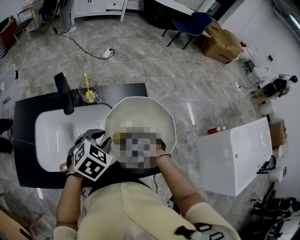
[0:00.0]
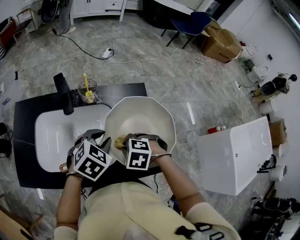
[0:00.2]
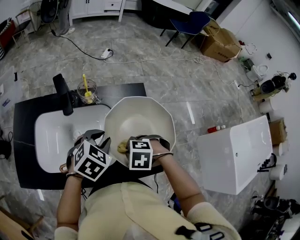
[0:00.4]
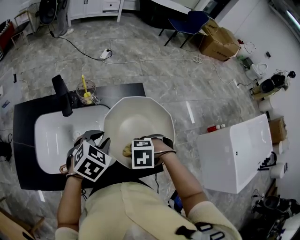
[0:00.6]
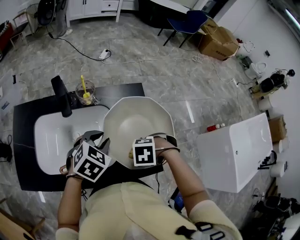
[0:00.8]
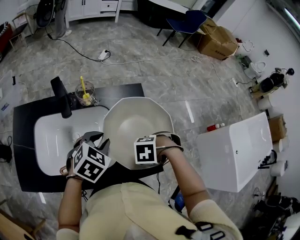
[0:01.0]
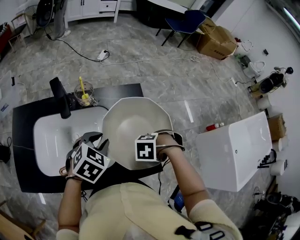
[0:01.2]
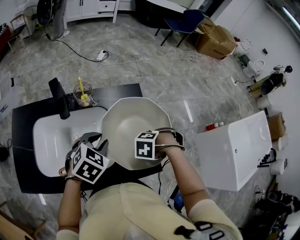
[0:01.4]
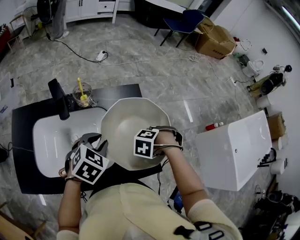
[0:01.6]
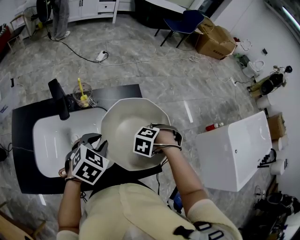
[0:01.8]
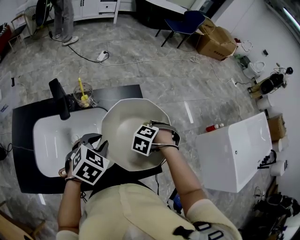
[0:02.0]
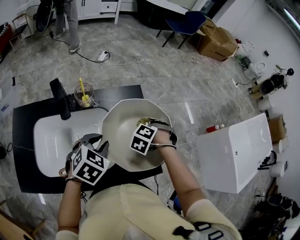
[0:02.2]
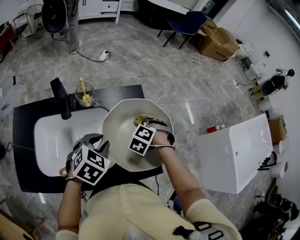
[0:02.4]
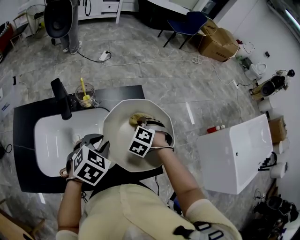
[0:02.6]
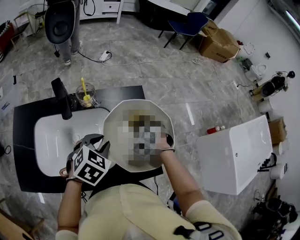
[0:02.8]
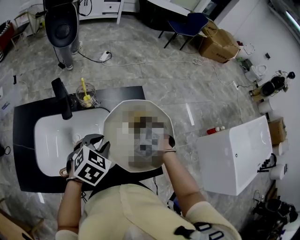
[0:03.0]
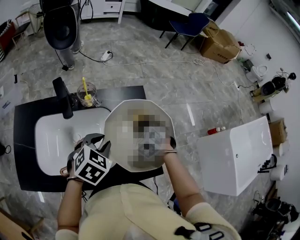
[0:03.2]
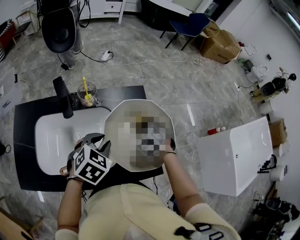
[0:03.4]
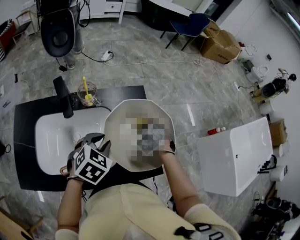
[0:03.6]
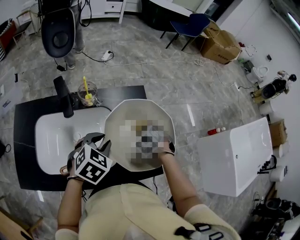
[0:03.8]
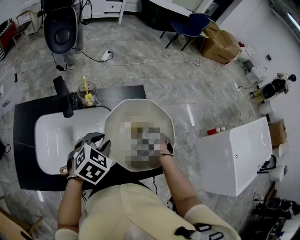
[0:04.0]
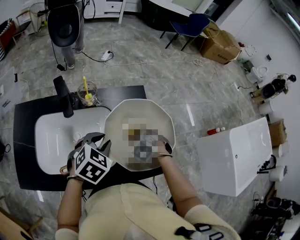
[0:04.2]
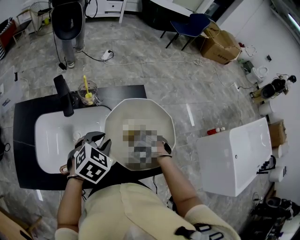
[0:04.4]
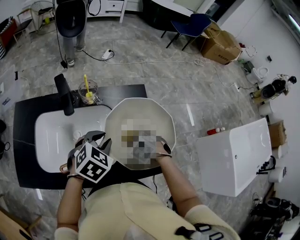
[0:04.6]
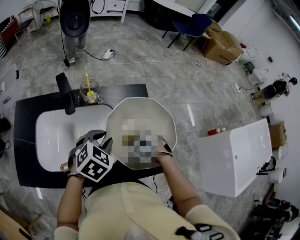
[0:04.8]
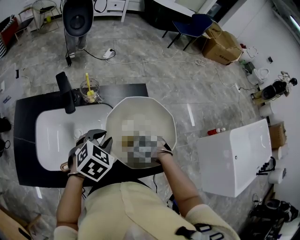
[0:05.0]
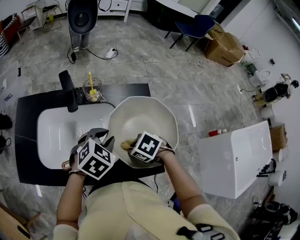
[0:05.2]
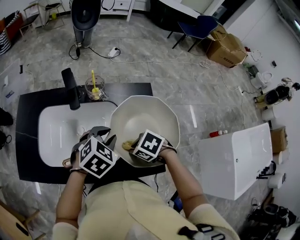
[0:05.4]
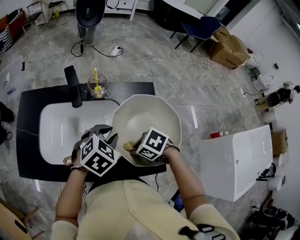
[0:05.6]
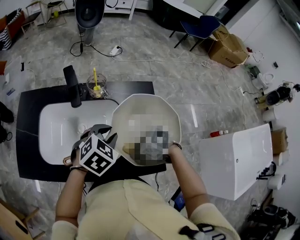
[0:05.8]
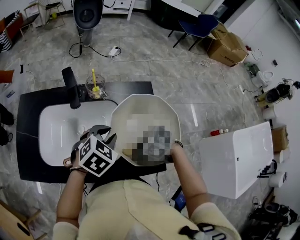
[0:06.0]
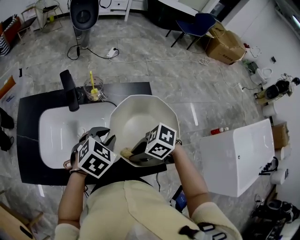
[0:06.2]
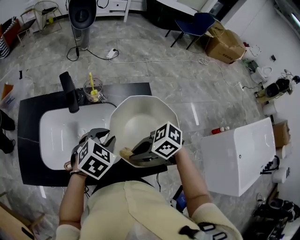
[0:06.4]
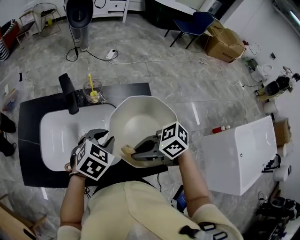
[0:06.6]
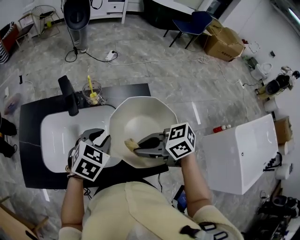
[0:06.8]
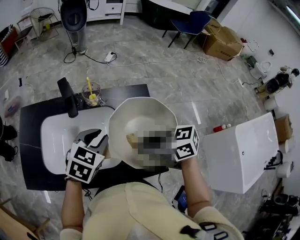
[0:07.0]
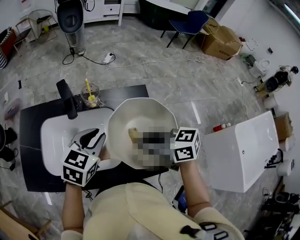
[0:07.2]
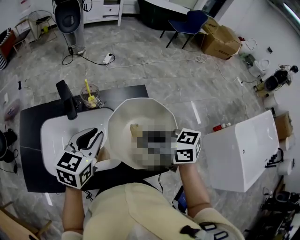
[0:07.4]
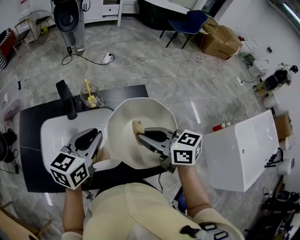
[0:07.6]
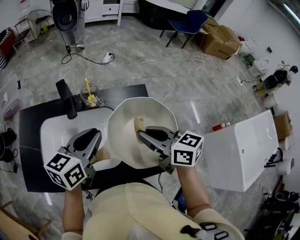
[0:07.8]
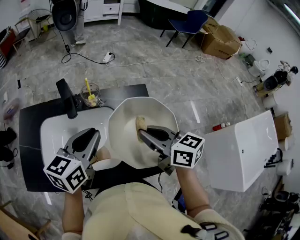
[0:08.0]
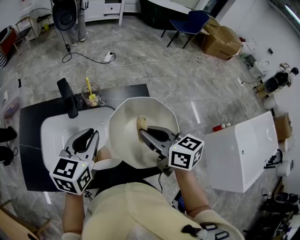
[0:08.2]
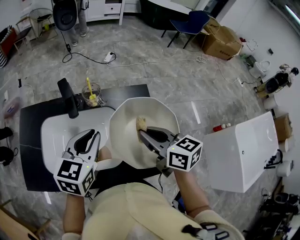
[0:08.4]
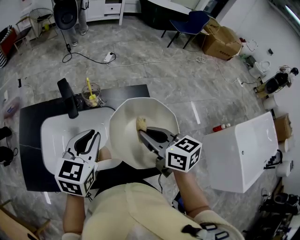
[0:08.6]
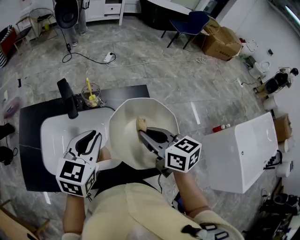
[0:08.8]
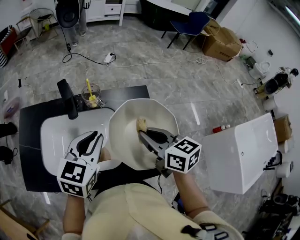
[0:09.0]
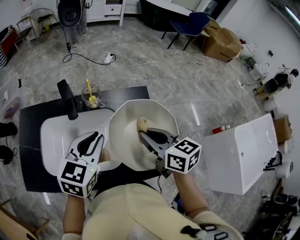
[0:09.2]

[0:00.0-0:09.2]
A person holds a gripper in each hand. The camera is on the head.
0:00.0 to 0:01.6: The right gripper shifts by approximately 15 cm, and changes its angle by some 30 degrees.
0:01.6 to 0:03.0: The right gripper ends up some 10 cm from where it was, and swivels approximately 40 degrees.
0:03.0 to 0:04.6: The right gripper moves backward, approximately 10 cm, and rotates approximately 30 degrees.
0:04.6 to 0:06.2: The right gripper shifts by some 10 cm, and points its fingers about 30 degrees further upward.
0:06.2 to 0:07.6: Both grippers move upward, about 10 cm. The left gripper points its fingers about 30 degrees further upward, while the right gripper changes its angle by about 50 degrees.
0:07.6 to 0:09.2: The grippers move only a little.

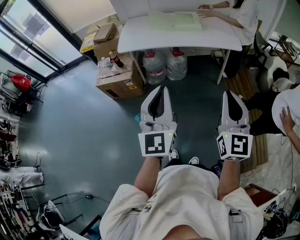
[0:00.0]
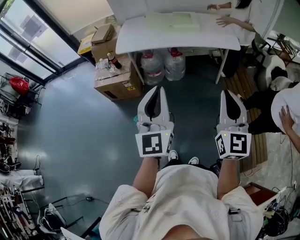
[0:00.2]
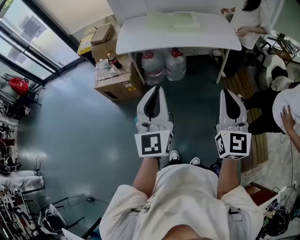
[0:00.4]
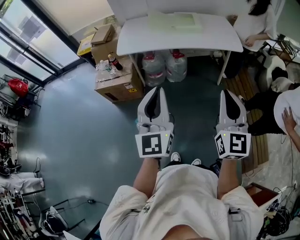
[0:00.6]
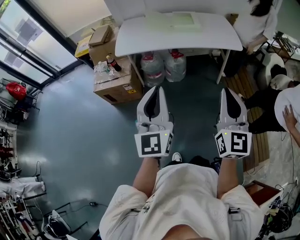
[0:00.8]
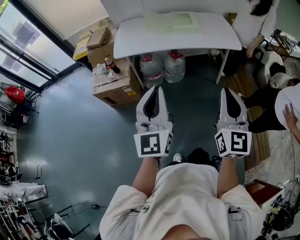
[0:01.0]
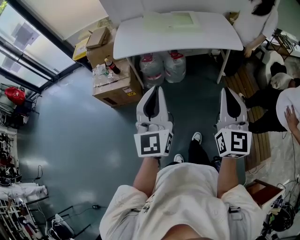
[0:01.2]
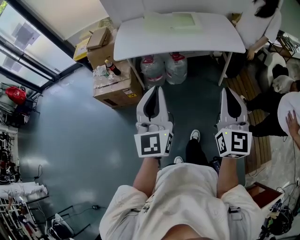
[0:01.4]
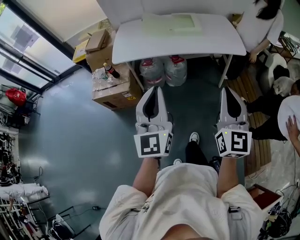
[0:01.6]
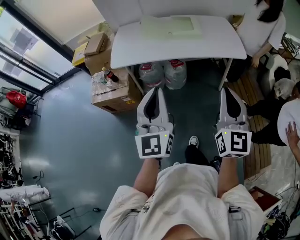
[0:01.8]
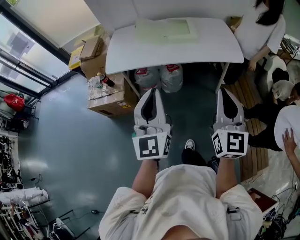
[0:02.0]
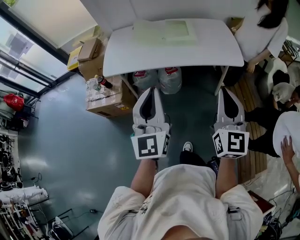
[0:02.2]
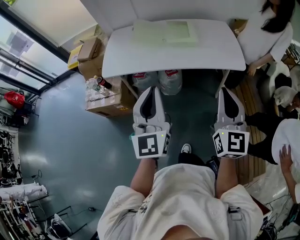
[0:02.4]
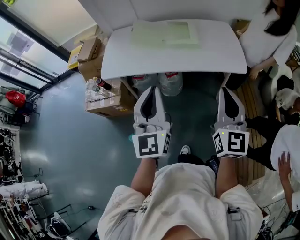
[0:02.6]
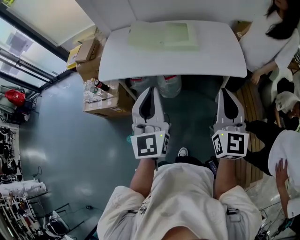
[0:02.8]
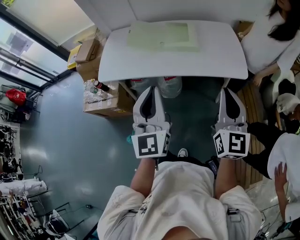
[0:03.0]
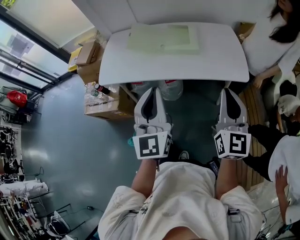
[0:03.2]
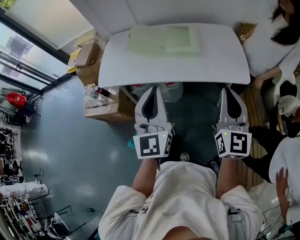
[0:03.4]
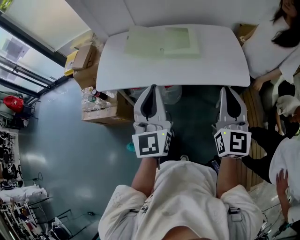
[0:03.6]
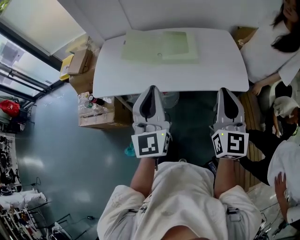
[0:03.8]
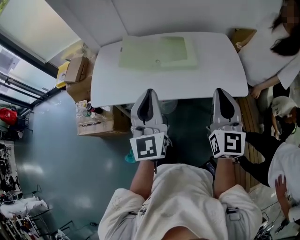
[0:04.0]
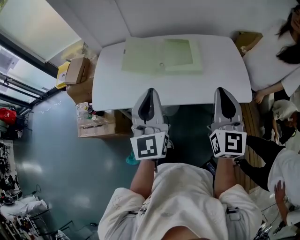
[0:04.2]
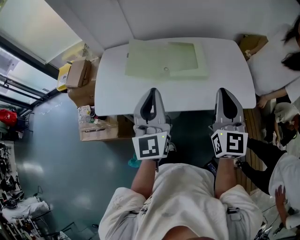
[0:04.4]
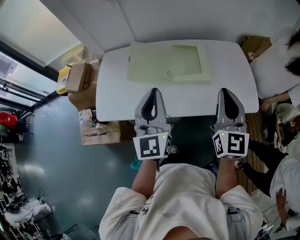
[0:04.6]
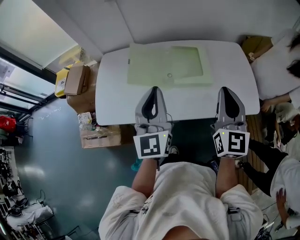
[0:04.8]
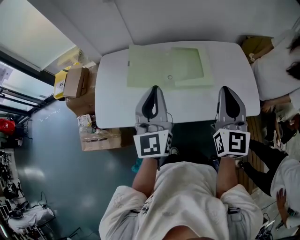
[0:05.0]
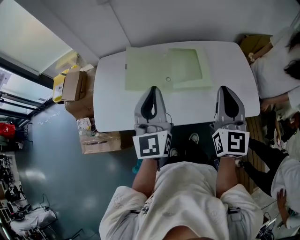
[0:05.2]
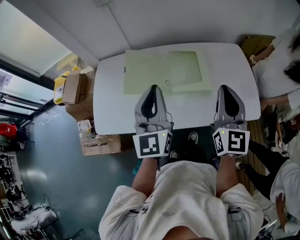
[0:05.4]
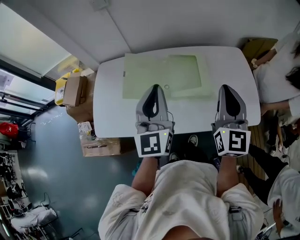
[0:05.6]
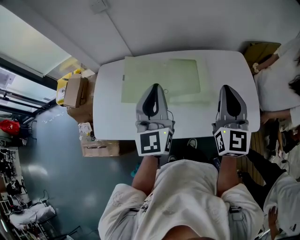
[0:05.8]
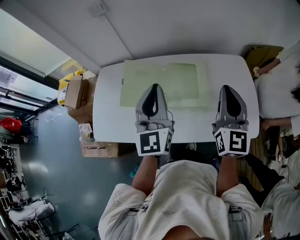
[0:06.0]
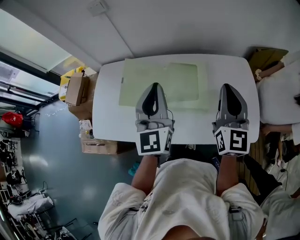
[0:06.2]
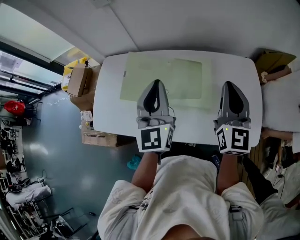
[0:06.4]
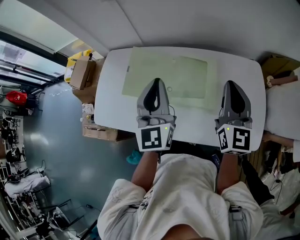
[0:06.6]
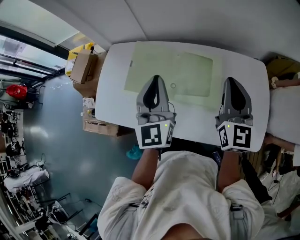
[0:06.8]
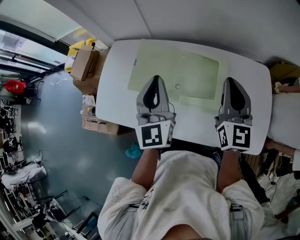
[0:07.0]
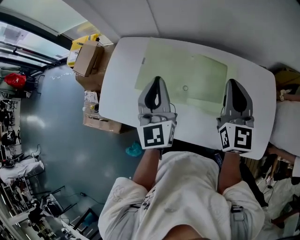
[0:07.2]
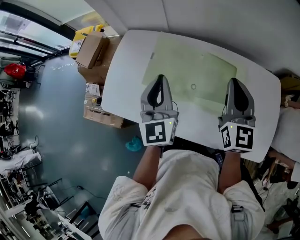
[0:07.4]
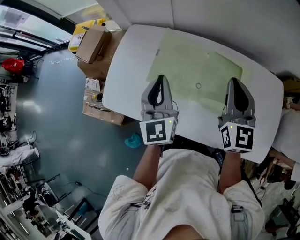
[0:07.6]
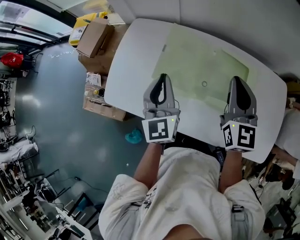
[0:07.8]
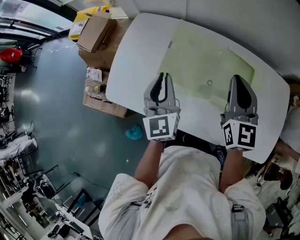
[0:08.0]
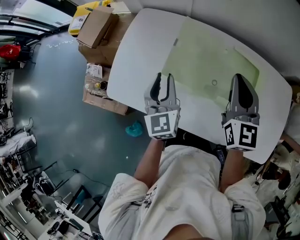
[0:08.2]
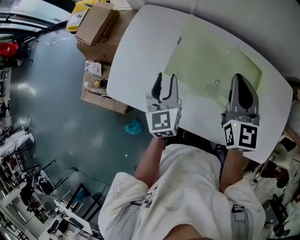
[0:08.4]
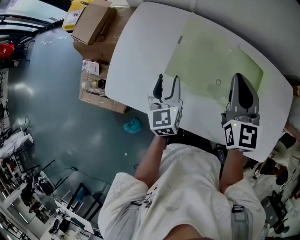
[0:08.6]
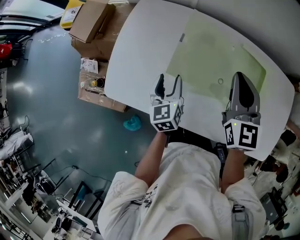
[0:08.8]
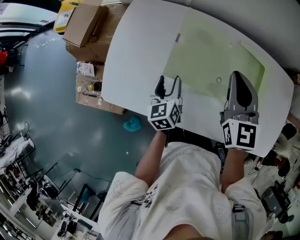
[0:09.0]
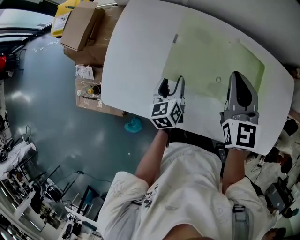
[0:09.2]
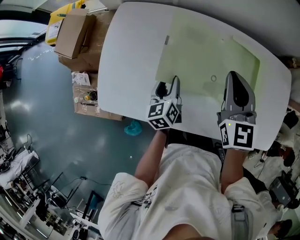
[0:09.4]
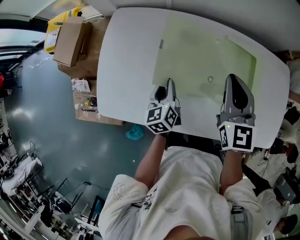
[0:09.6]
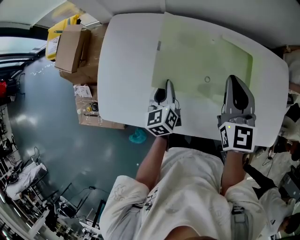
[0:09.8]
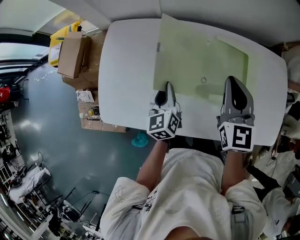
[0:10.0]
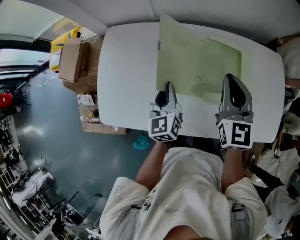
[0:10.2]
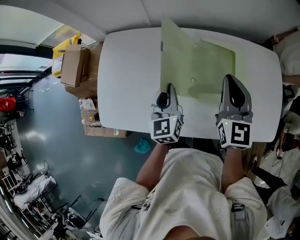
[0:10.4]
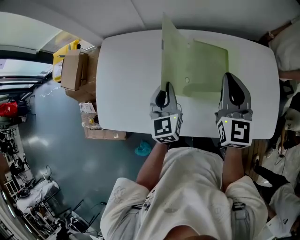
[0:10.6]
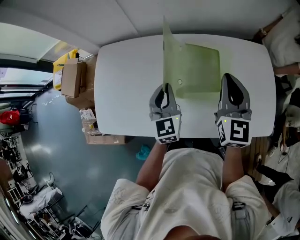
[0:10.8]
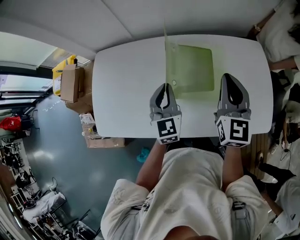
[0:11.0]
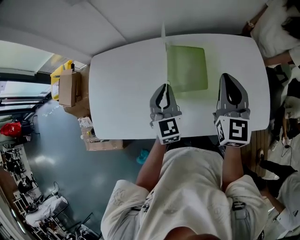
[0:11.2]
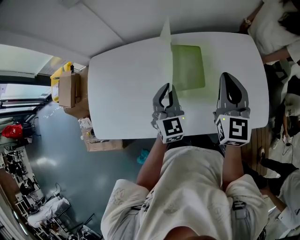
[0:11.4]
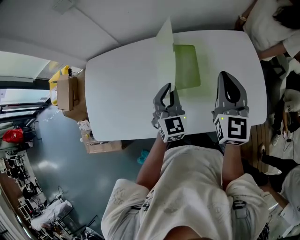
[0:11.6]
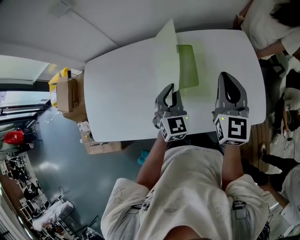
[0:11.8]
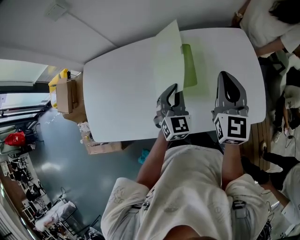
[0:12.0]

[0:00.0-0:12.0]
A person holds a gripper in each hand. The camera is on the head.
0:00.0 to 0:01.6: The two grippers go some 15 cm forward.
0:01.6 to 0:03.0: Both grippers travel together forward and to the right, about 30 cm.
0:03.0 to 0:04.4: Both grippers move forward, about 25 cm.
0:04.4 to 0:06.0: Both grippers move forward, approximately 20 cm.
0:06.0 to 0:07.6: The right gripper heads to the left and forward, covering about 20 cm, and rotates roughly 20 degrees; the left gripper travels to the left, downward and forward by approximately 20 cm, and rotates approximately 20 degrees.
0:07.6 to 0:09.0: The left gripper goes approximately 25 cm downward, swivels approximately 40 degrees, and opens its fingers; the right gripper travels to the left, downward and forward by roughly 15 cm.
0:09.0 to 0:10.4: The left gripper is displaced to the right and upward by some 15 cm, turns by about 20 degrees, and closes, while the right gripper shifts about 15 cm to the right.
0:10.4 to 0:12.0: Both grippers move to the right, roughly 20 cm. The left gripper twists roughly 40 degrees clockwise, seen from behind.

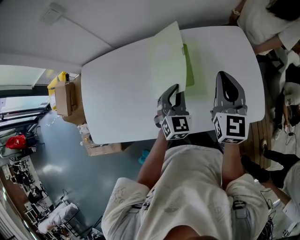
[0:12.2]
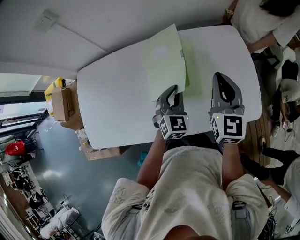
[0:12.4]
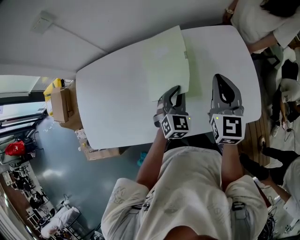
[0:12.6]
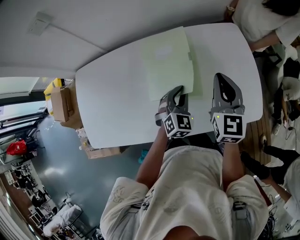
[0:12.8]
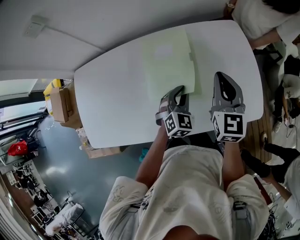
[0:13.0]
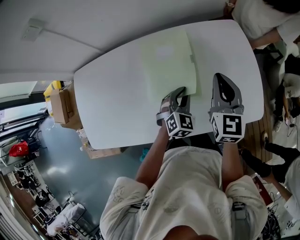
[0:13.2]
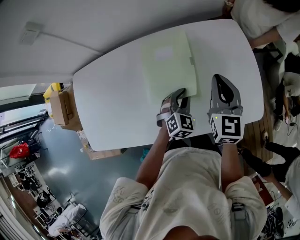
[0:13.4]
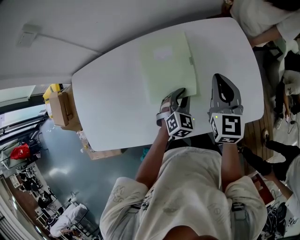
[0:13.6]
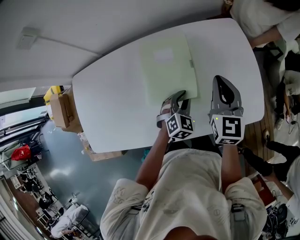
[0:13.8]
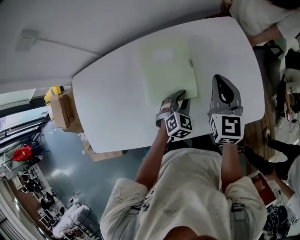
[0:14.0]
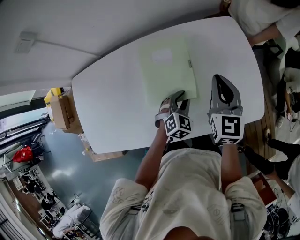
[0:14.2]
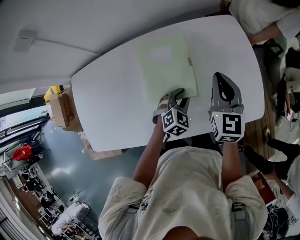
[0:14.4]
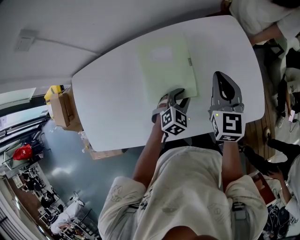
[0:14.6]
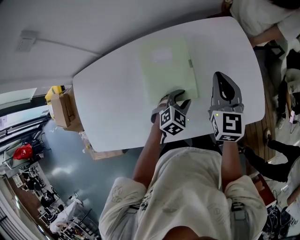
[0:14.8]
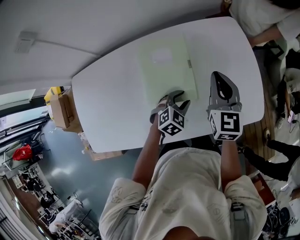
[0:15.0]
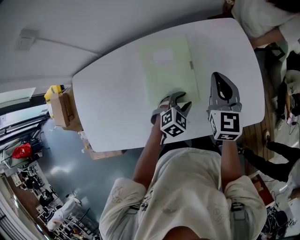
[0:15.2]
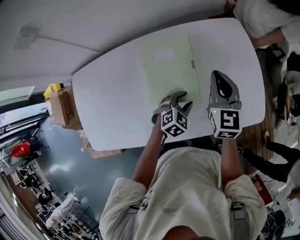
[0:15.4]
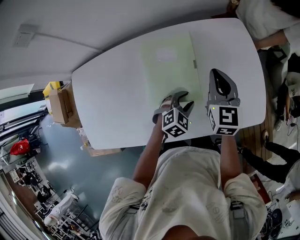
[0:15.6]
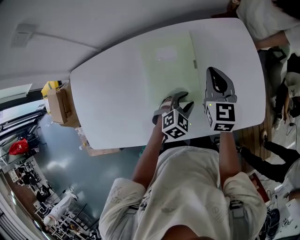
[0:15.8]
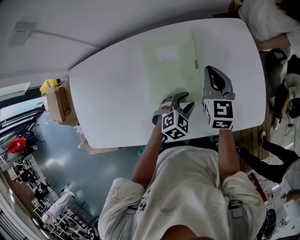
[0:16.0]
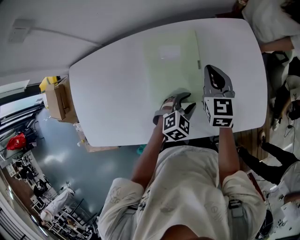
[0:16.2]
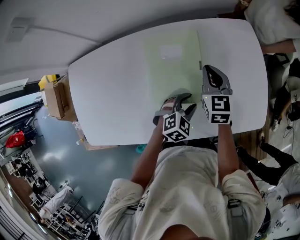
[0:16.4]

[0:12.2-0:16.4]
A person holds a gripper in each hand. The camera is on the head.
0:12.2 to 0:13.6: The right gripper heads downward, covering about 5 cm; the left gripper is displaced downward and to the right by roughly 10 cm, and changes its angle by roughly 20 degrees.
0:13.6 to 0:15.0: The left gripper opens up.
0:15.0 to 0:16.4: The right gripper heads downward and to the left, covering roughly 10 cm.
